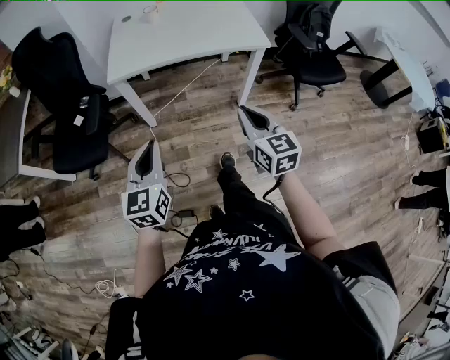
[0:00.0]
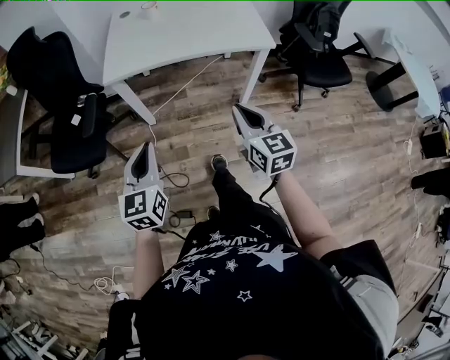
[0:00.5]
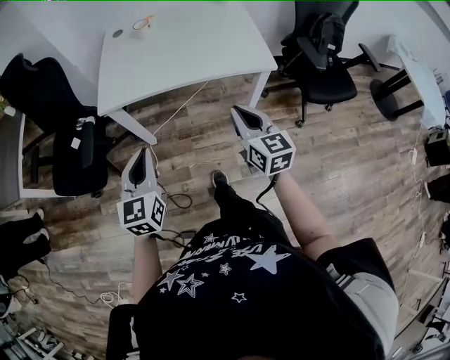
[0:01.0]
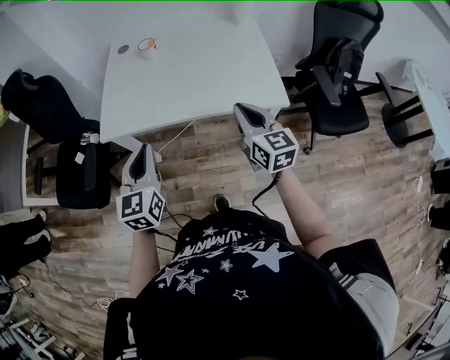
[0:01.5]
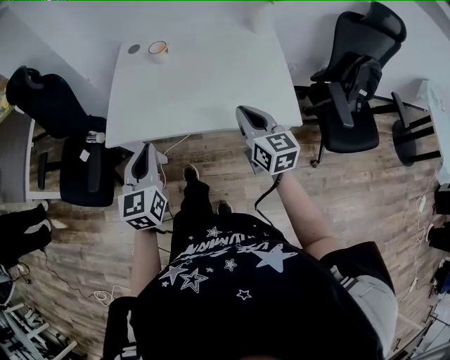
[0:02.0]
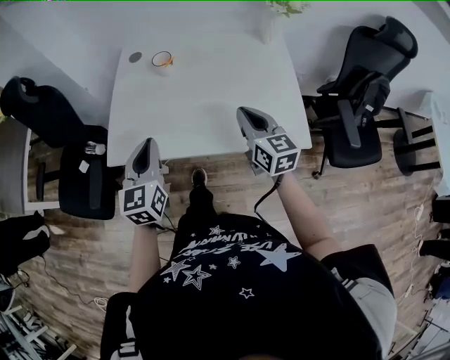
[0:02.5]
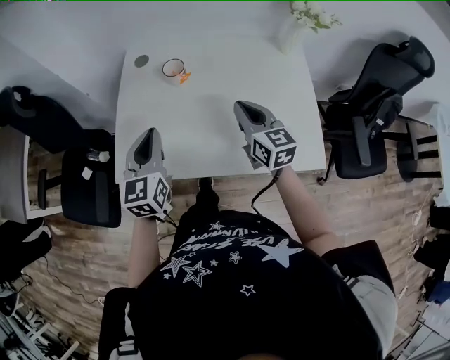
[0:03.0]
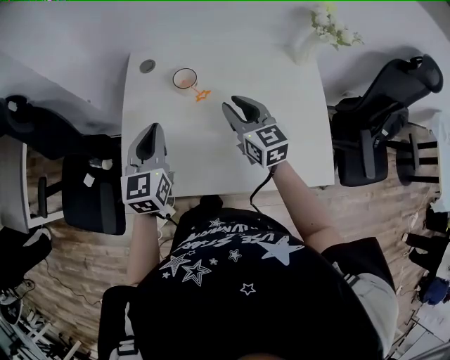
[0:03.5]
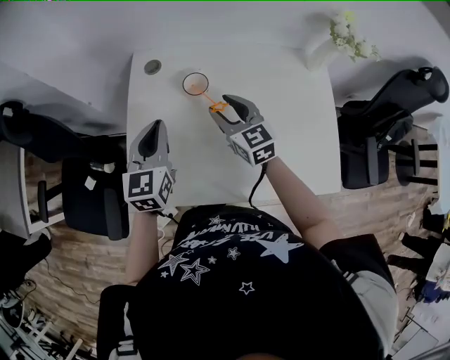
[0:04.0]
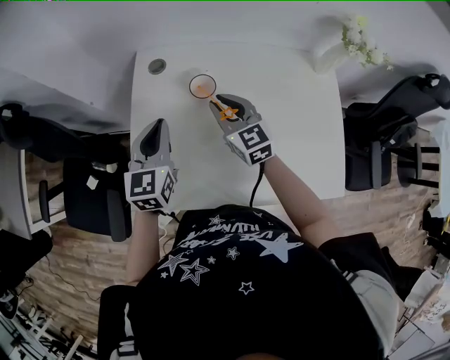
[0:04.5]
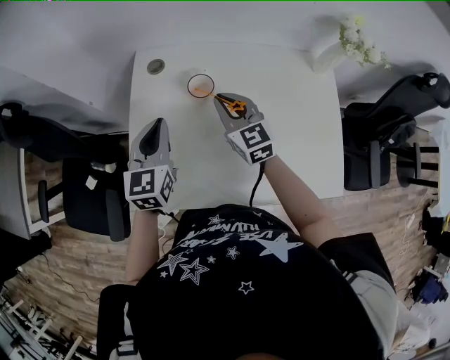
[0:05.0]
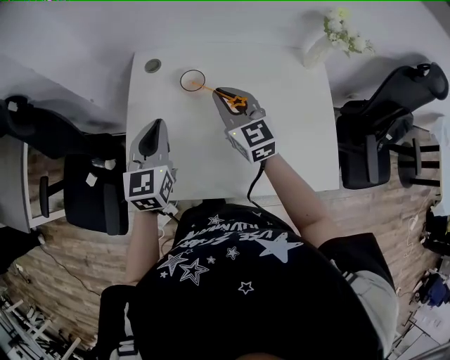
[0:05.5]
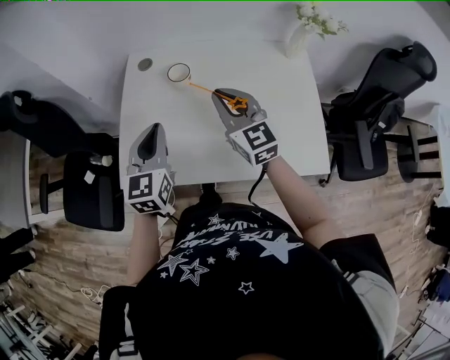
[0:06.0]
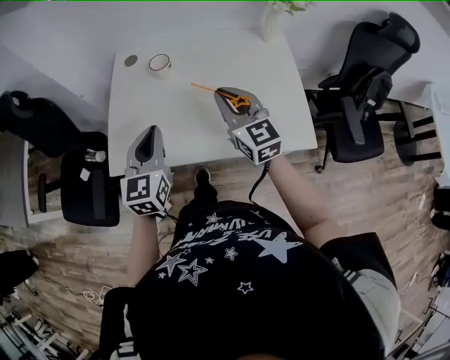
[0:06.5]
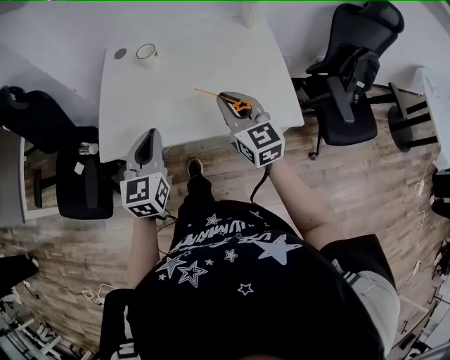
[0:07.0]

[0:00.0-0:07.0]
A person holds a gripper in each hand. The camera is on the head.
0:00.0 to 0:02.0: Both grippers travel together forward, approximately 35 cm.
0:02.0 to 0:03.5: The grippers both shift forward by approximately 30 cm. The right gripper opens up.
0:03.5 to 0:05.0: The left gripper moves forward, roughly 5 cm. Meanwhile the right gripper is displaced forward and to the left by approximately 10 cm, and closes.
0:05.0 to 0:07.0: The left gripper travels backward by about 30 cm, while the right gripper is displaced backward and to the right by roughly 30 cm.

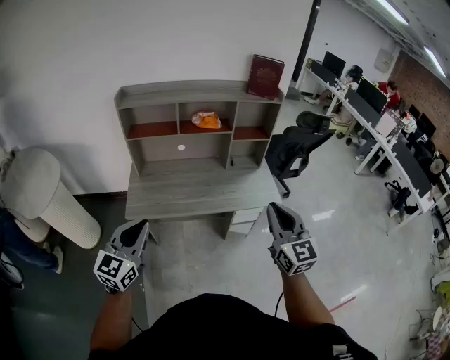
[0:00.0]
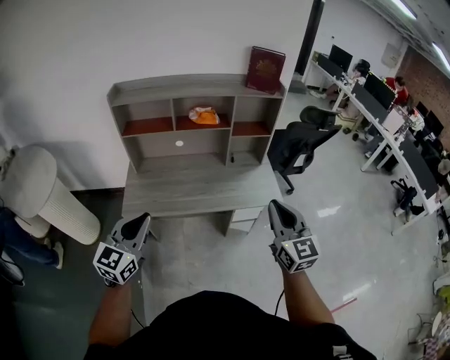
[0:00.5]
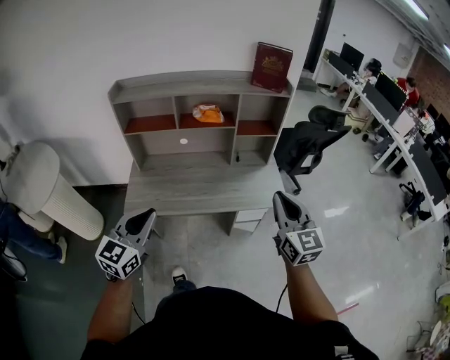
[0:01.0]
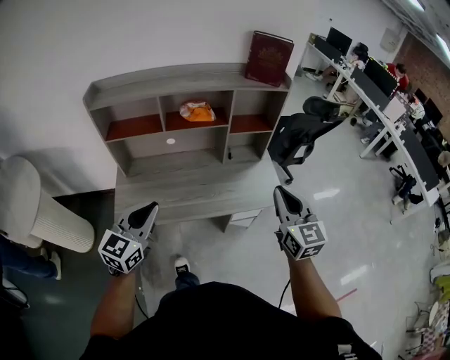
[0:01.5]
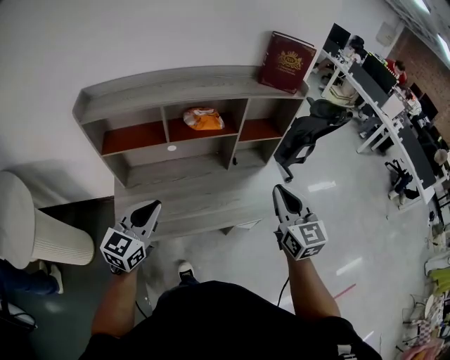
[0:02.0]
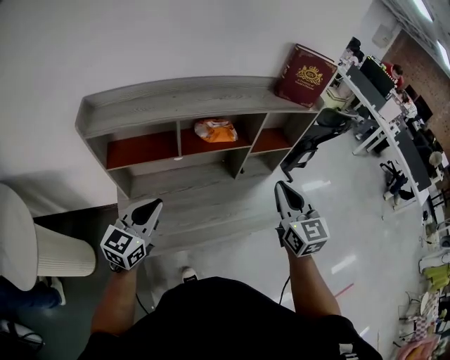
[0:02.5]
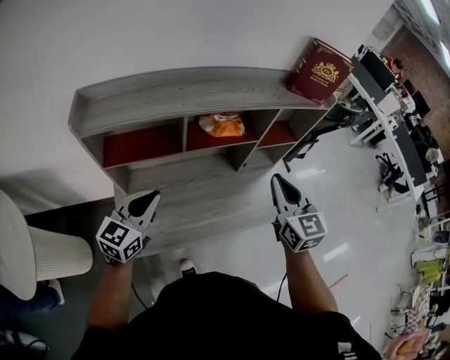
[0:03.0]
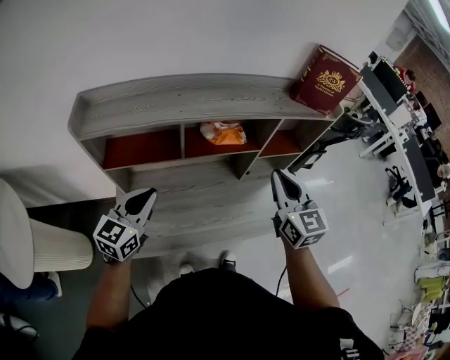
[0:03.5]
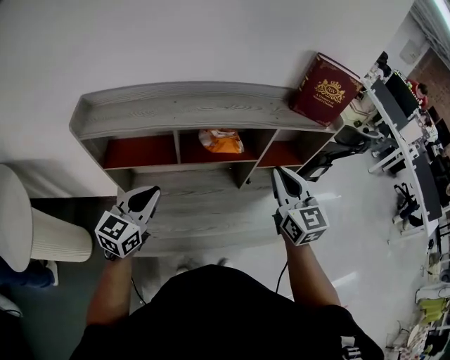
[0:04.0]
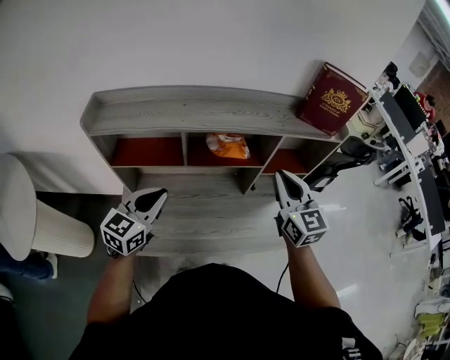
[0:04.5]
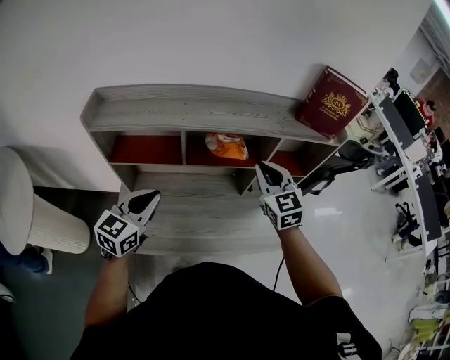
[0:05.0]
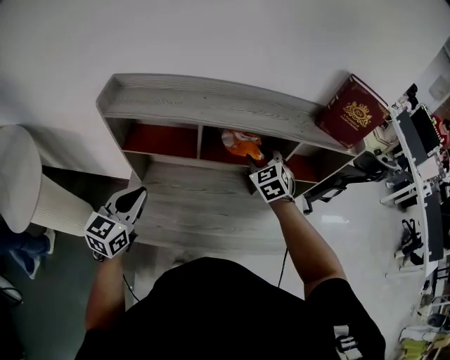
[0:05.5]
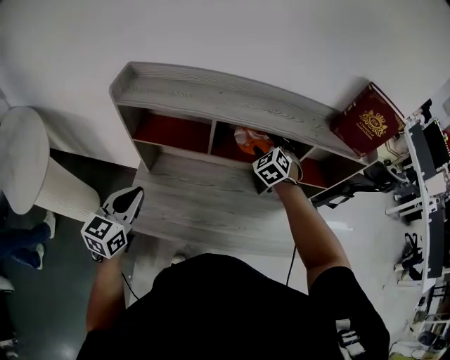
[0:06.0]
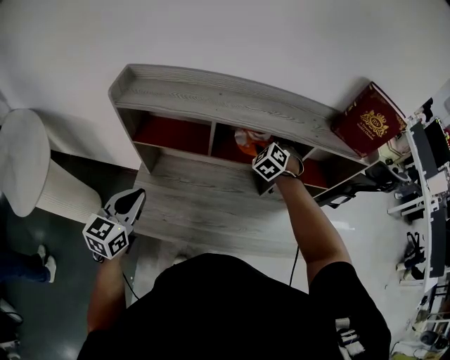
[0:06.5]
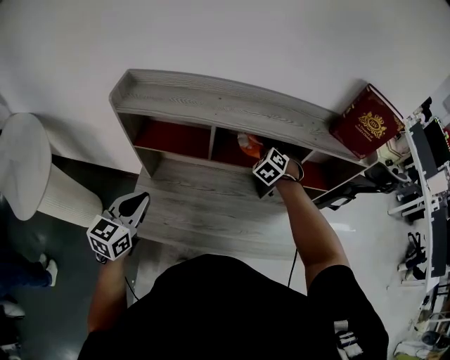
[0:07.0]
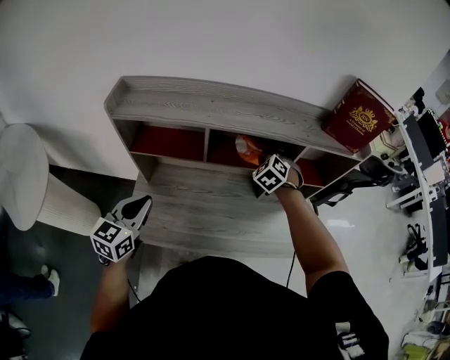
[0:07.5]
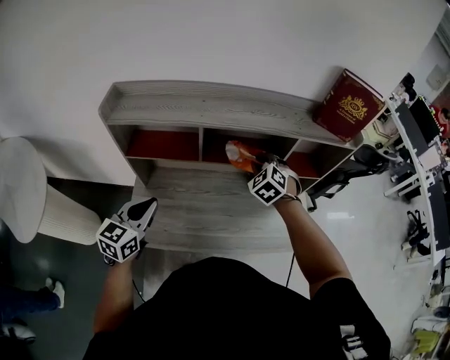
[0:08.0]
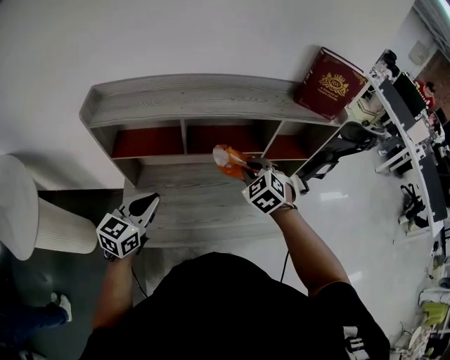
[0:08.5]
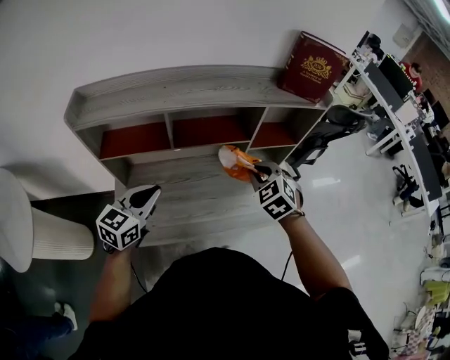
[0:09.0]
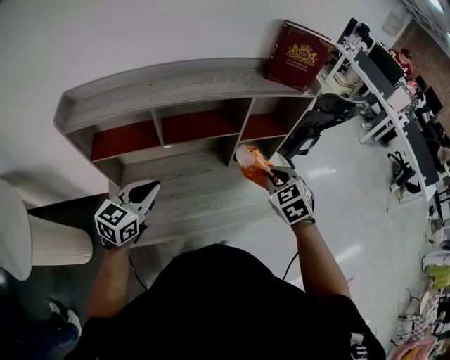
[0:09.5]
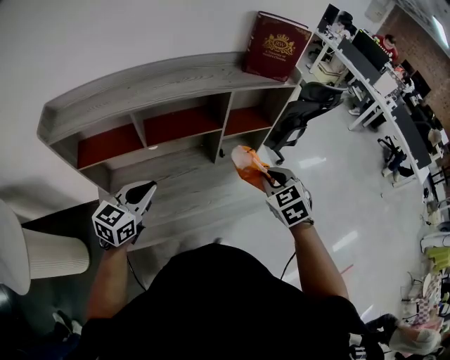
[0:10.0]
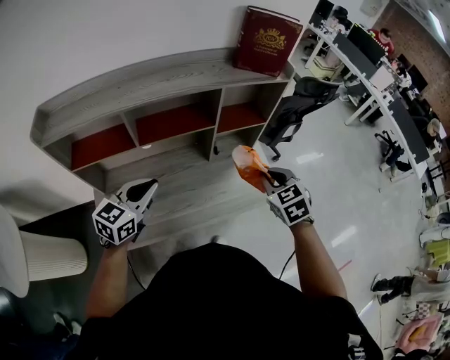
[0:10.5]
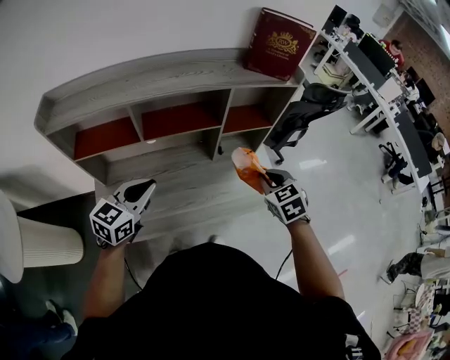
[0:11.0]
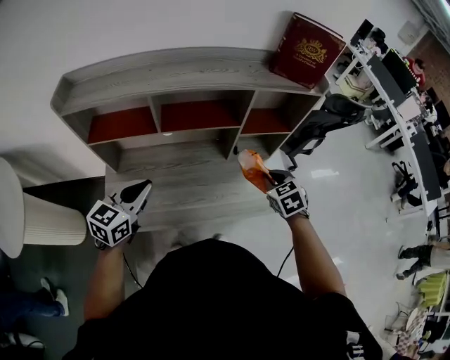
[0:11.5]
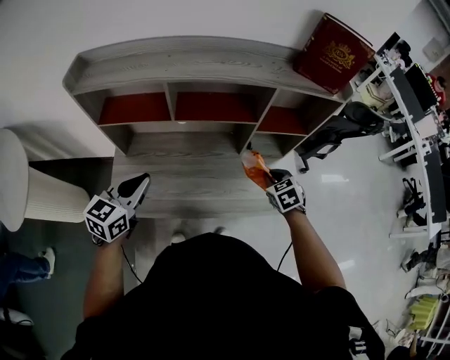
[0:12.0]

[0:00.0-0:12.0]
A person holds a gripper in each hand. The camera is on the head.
0:00.0 to 0:02.0: Both grippers travel together forward, approximately 30 cm.
0:02.0 to 0:04.0: The grippers both shift forward and to the left by some 20 cm.
0:04.0 to 0:06.0: The left gripper is displaced to the left and backward by about 10 cm, and changes its angle by roughly 20 degrees. The right gripper shifts some 25 cm forward, downward and to the left, rotates around the line of its fingers by about 50 degrees, counterclockwise from behind, and opens.
0:06.0 to 0:08.0: The right gripper moves backward, roughly 10 cm, and closes.
0:08.0 to 0:10.0: The right gripper heads to the right and backward, covering roughly 25 cm, and turns by some 30 degrees; the left gripper travels to the right by roughly 15 cm, and changes its angle by some 20 degrees.
0:10.0 to 0:12.0: The left gripper moves backward, roughly 5 cm. The right gripper is displaced downward and forward by some 15 cm.

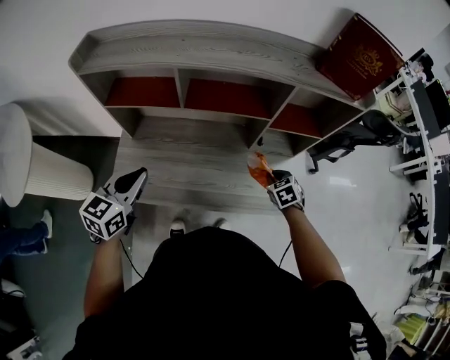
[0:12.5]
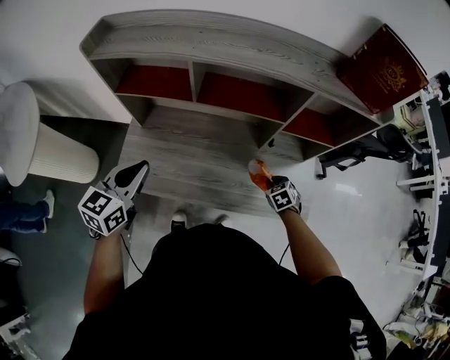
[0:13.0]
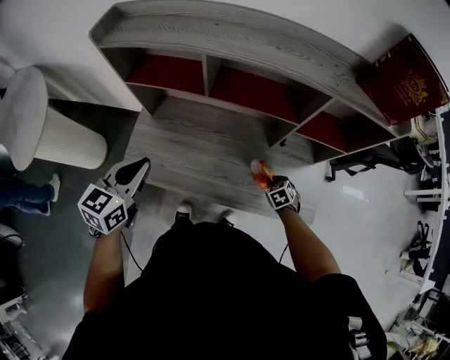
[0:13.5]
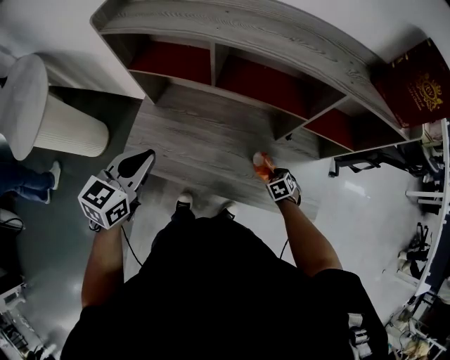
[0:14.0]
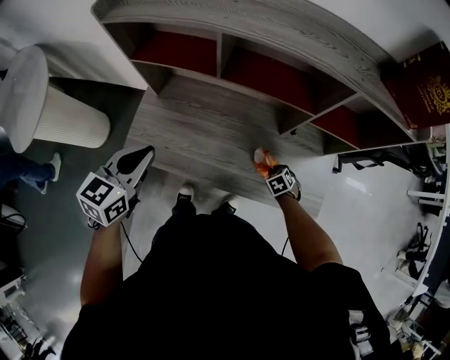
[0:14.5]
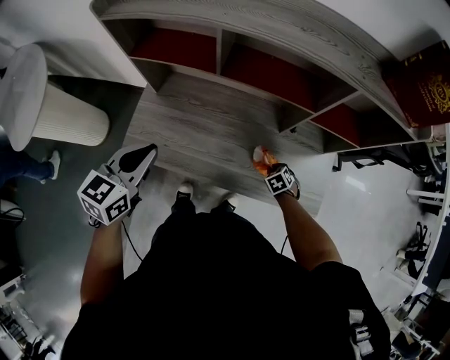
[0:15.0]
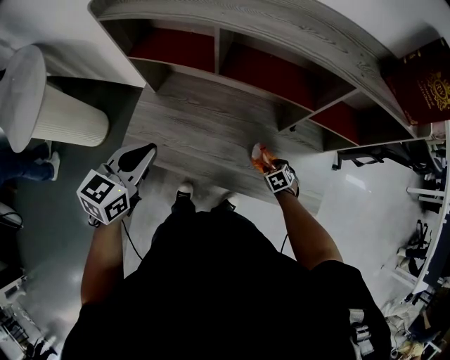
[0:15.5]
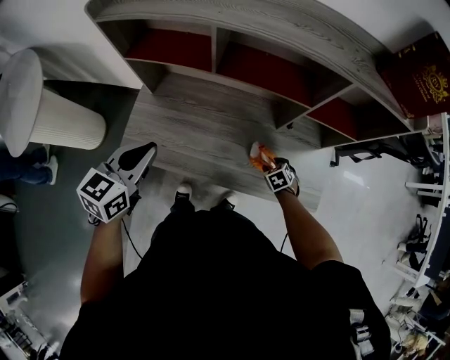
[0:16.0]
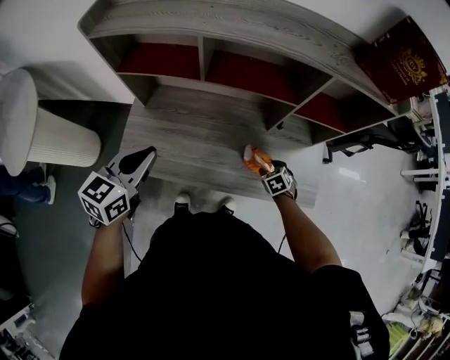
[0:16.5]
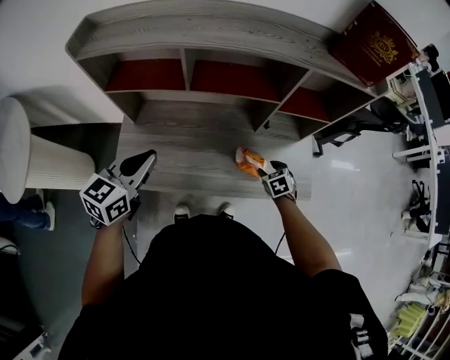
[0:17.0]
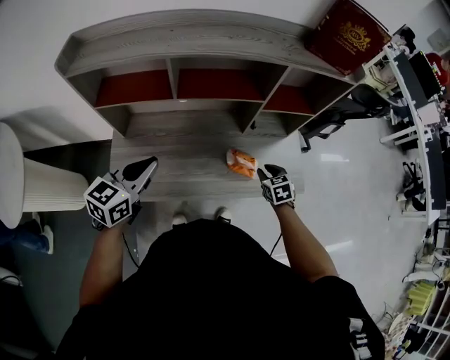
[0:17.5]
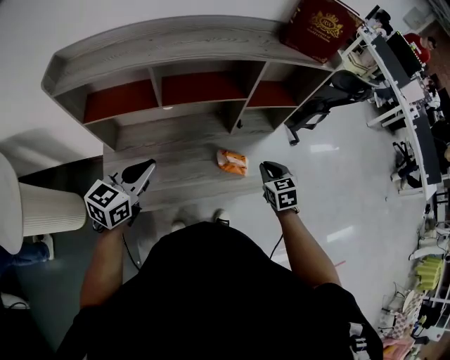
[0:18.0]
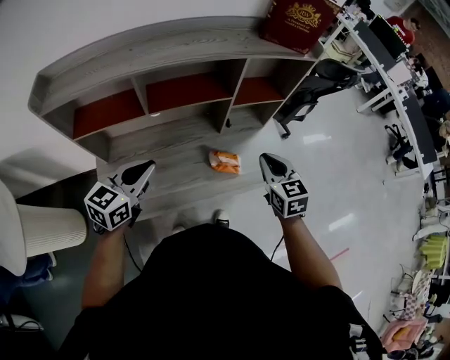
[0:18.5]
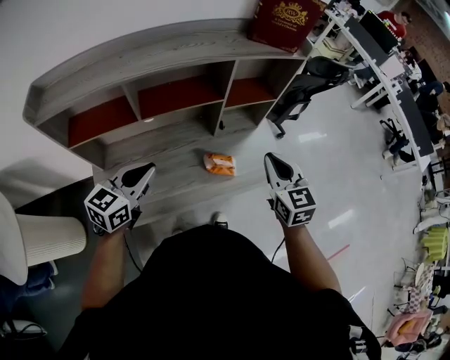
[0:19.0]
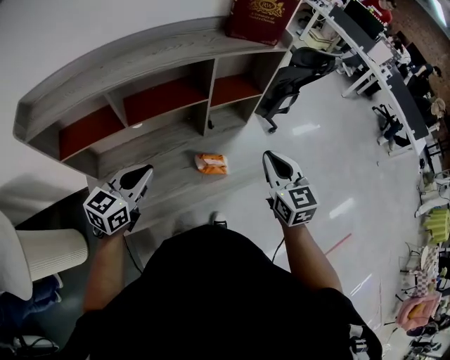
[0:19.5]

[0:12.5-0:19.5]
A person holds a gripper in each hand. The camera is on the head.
0:12.5 to 0:14.5: The right gripper moves downward, approximately 15 cm.
0:14.5 to 0:16.0: The right gripper opens.
0:16.0 to 0:17.5: The right gripper goes some 15 cm upward, swivels about 30 degrees, and closes.
0:17.5 to 0:19.5: The right gripper is displaced upward by roughly 25 cm, tips its fingers upward by some 30 degrees, and closes; the left gripper is displaced to the right by about 5 cm.

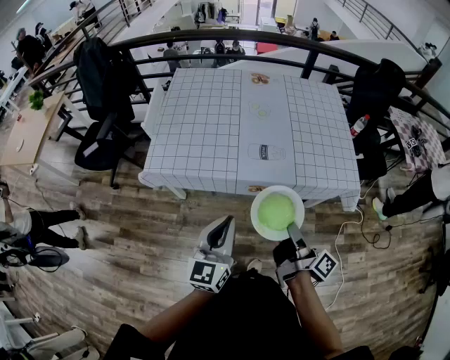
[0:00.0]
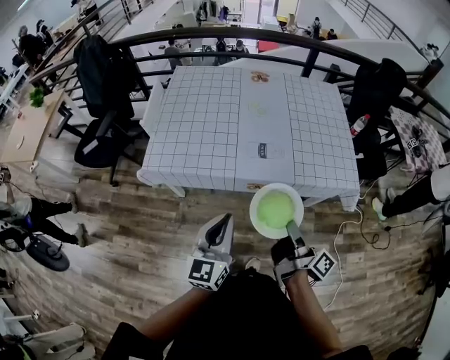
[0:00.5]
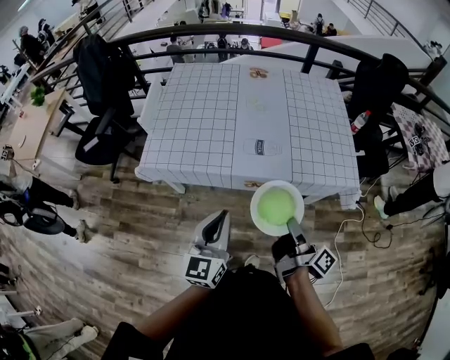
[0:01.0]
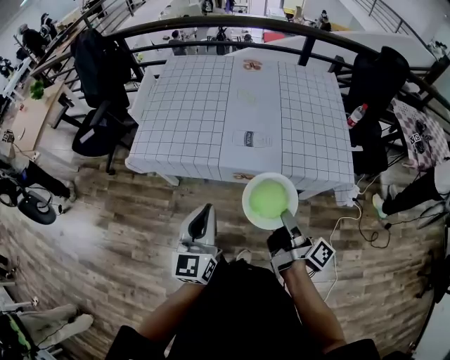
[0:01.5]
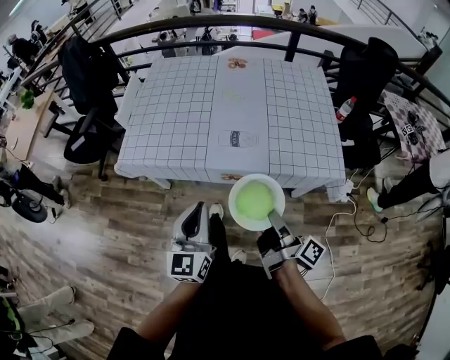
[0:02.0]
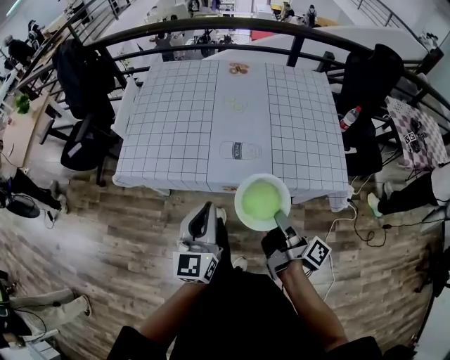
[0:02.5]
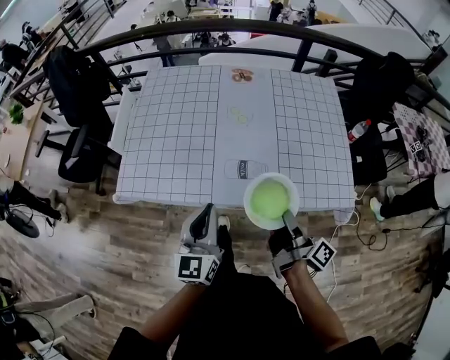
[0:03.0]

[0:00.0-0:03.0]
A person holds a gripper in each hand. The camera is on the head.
0:00.0 to 0:01.5: The left gripper shifts by approximately 5 cm.
0:01.5 to 0:03.0: The left gripper shifts by some 15 cm.
